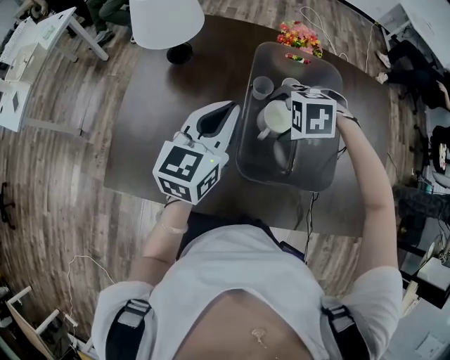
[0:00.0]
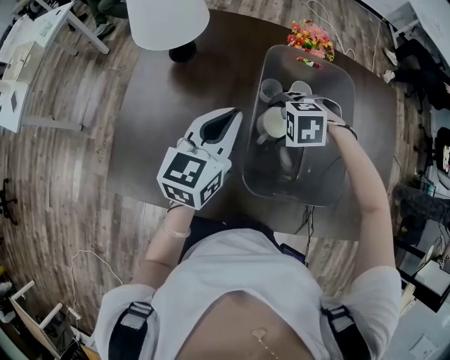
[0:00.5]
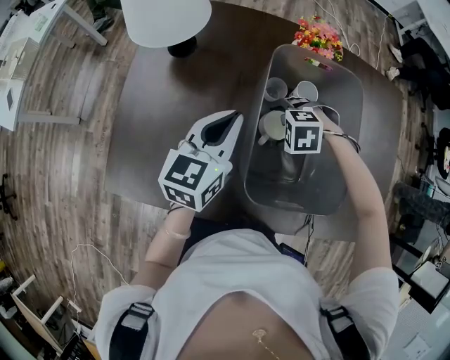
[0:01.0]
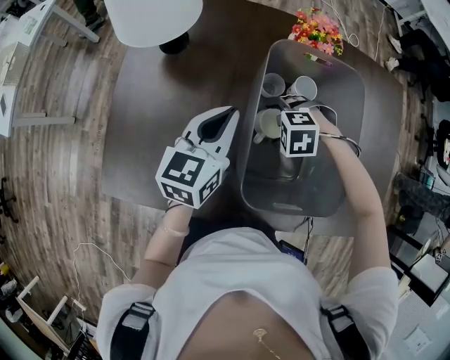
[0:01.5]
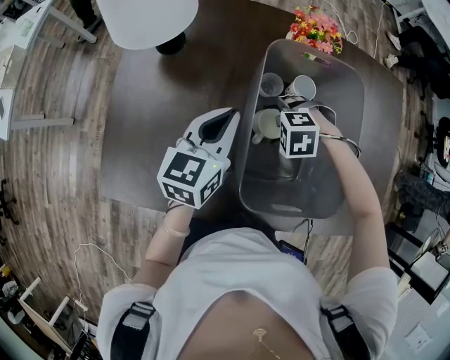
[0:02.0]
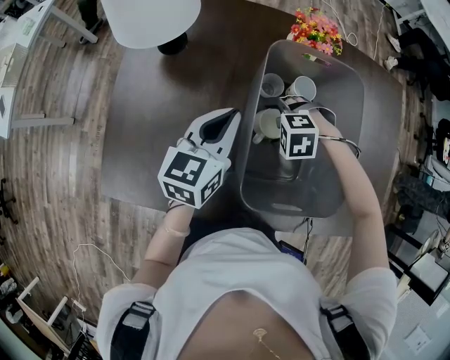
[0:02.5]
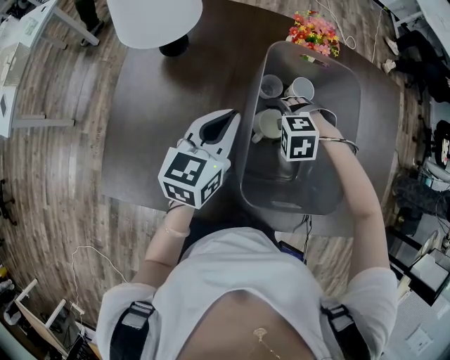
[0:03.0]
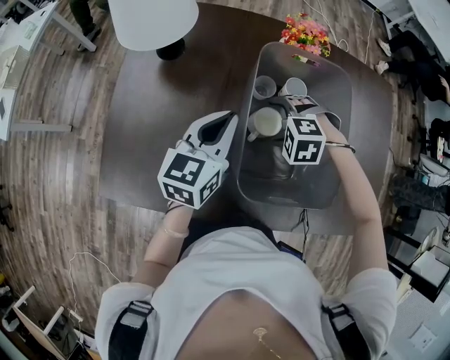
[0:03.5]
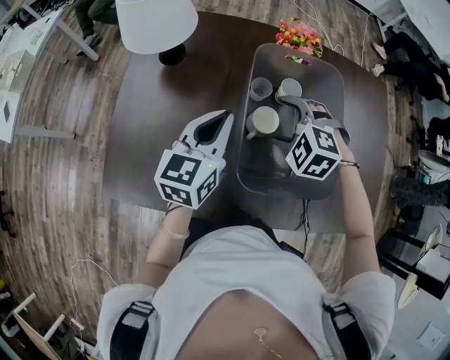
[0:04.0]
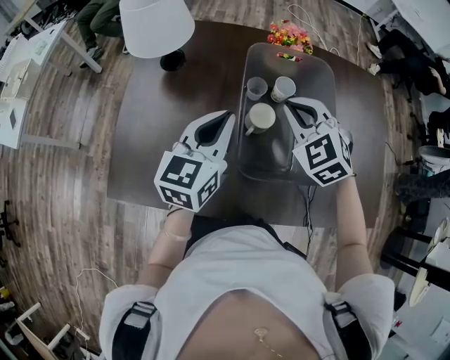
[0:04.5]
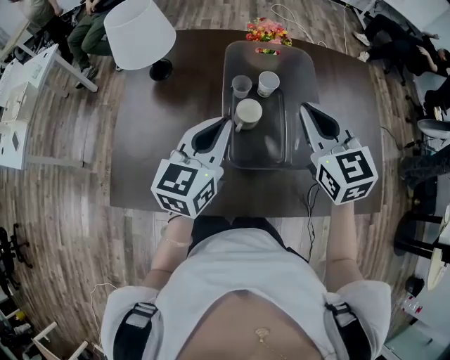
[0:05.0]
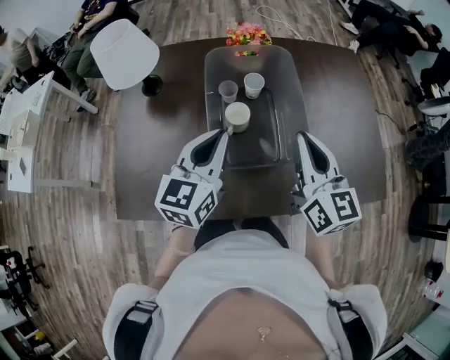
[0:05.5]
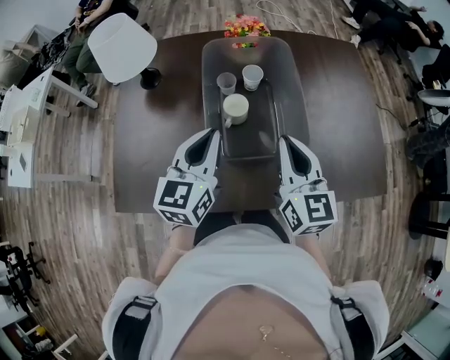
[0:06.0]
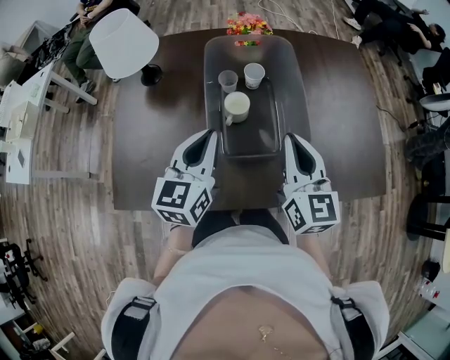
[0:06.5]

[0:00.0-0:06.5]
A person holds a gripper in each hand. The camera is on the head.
0.0 to 2.0 s: Both grippers travel together downward, roughly 10 cm.
2.0 to 4.5 s: The right gripper goes approximately 20 cm upward, tips its fingers upward by about 40 degrees, and closes its fingers. The left gripper moves upward, some 5 cm.
4.5 to 6.5 s: The right gripper is displaced backward and to the right by roughly 15 cm, and rotates around the line of its fingers by some 50 degrees, clockwise from behind, while the left gripper travels backward by some 5 cm.

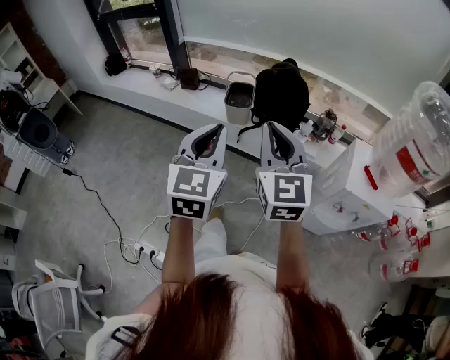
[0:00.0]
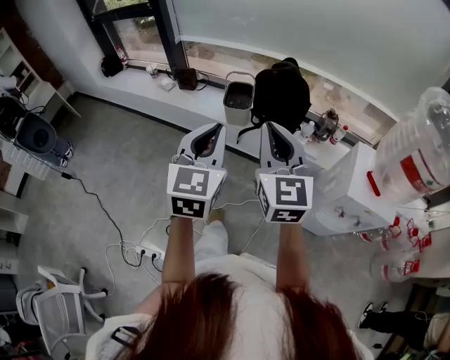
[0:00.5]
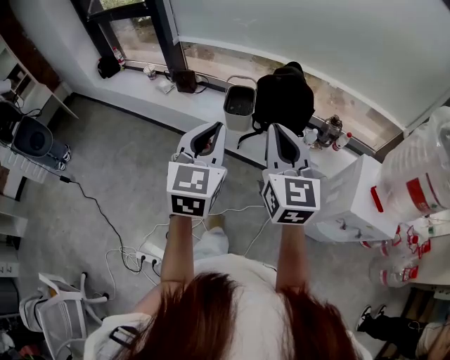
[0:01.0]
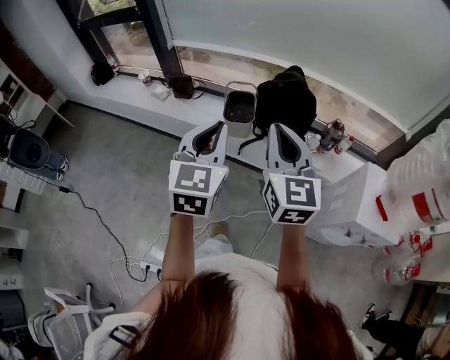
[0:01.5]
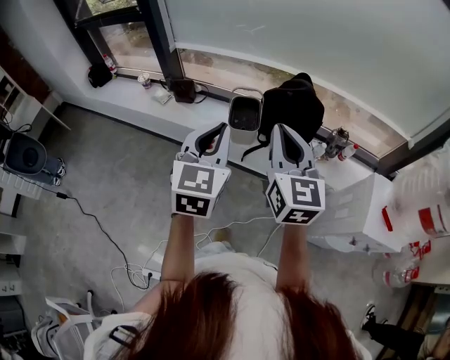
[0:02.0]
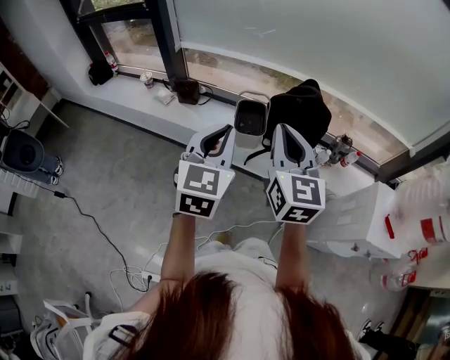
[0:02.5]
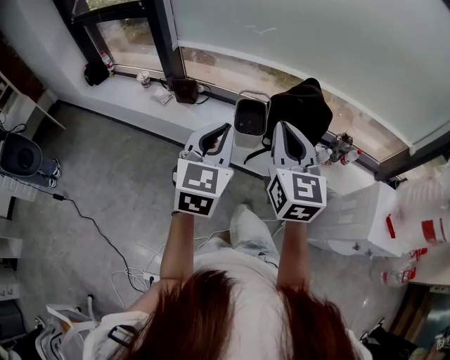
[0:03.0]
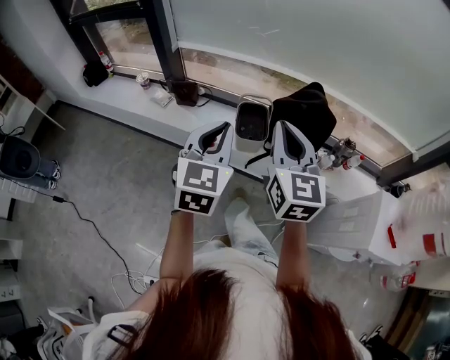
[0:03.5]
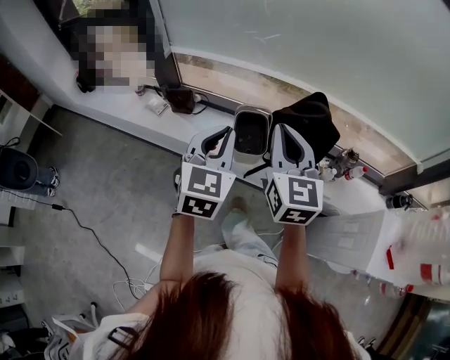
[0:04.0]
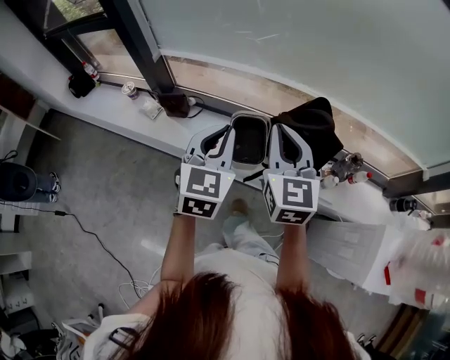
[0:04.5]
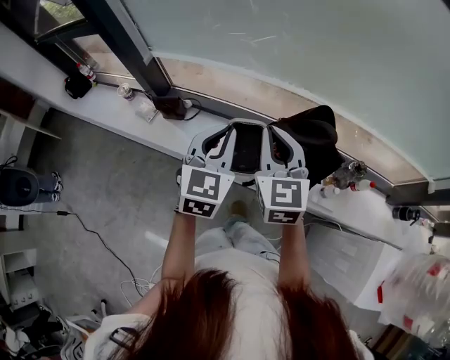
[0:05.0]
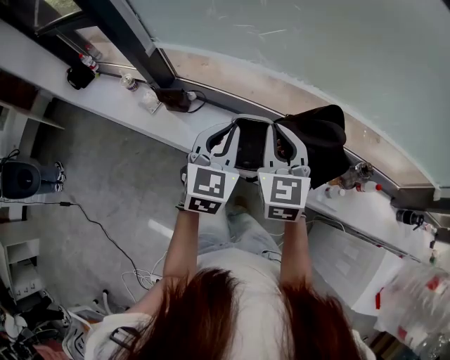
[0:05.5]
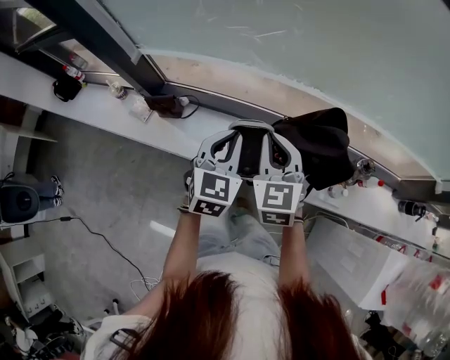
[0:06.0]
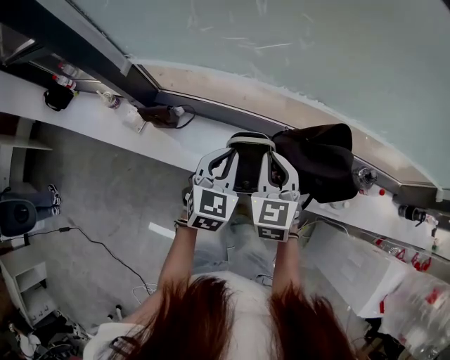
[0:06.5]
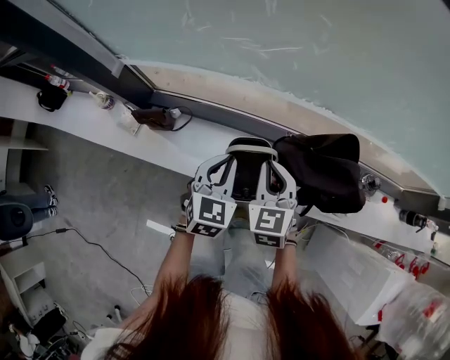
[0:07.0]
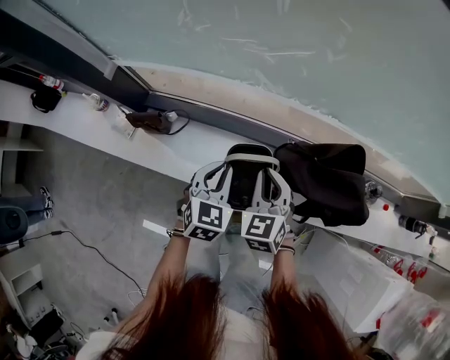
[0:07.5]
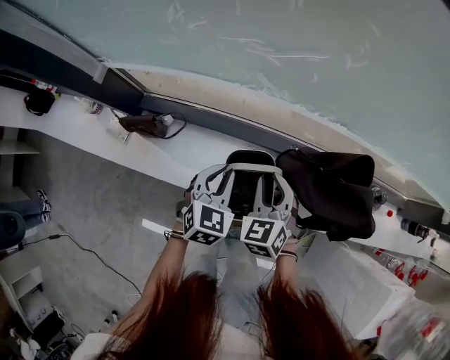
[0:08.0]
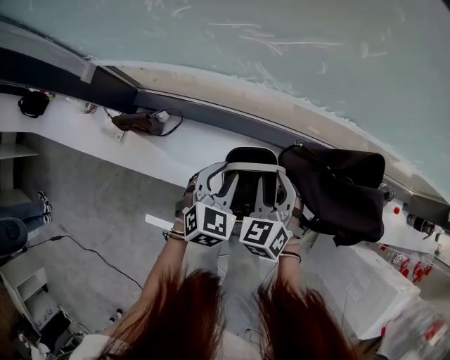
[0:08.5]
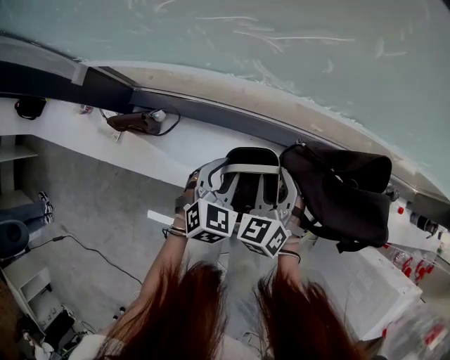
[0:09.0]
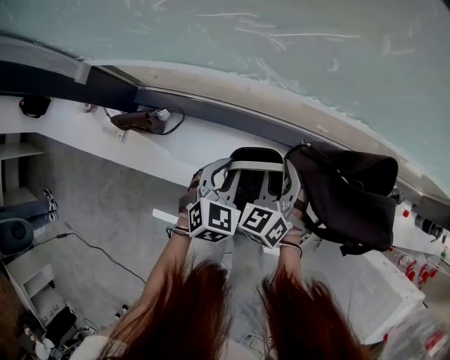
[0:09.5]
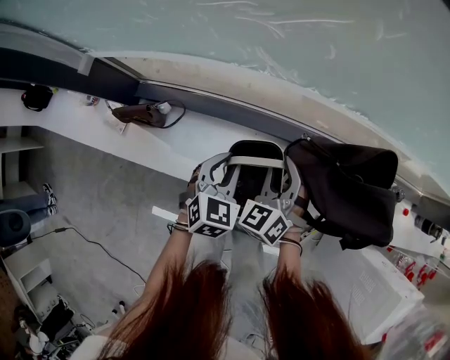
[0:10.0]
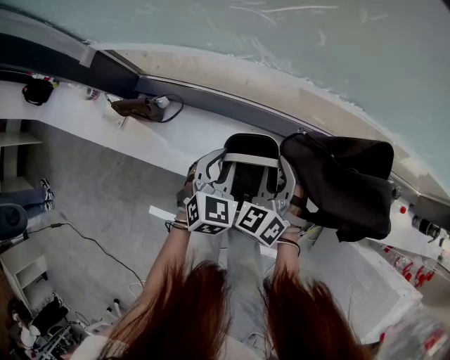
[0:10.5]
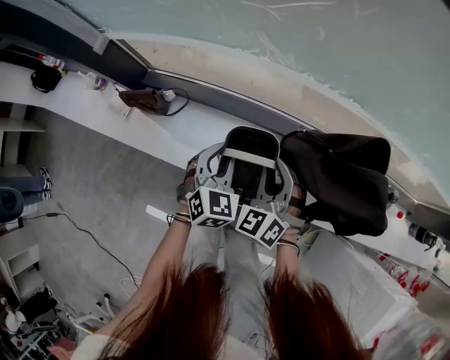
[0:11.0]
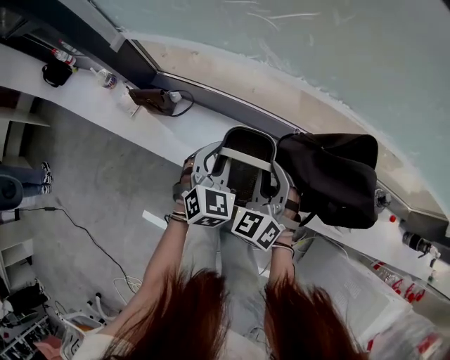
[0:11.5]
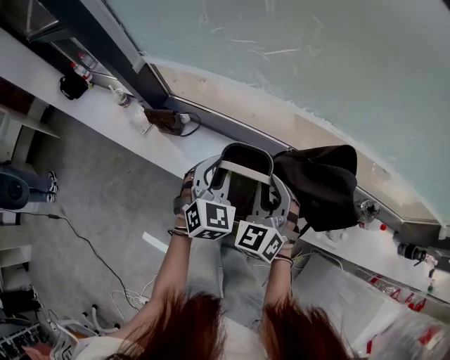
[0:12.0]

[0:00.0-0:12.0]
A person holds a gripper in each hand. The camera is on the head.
0.0 to 2.0 s: The grippers both shift forward by about 20 cm.
2.0 to 4.0 s: Both grippers move forward, approximately 20 cm.
4.0 to 6.0 s: Both grippers travel together forward and downward, roughly 25 cm.
6.0 to 8.0 s: The right gripper travels downward by some 20 cm, and turns by approximately 30 degrees, while the left gripper moves downward and forward, roughly 20 cm.
8.0 to 10.0 s: Both grippers move downward, approximately 5 cm.
10.0 to 12.0 s: The two grippers go roughly 15 cm upward and backward. The left gripper turns by roughly 20 degrees.

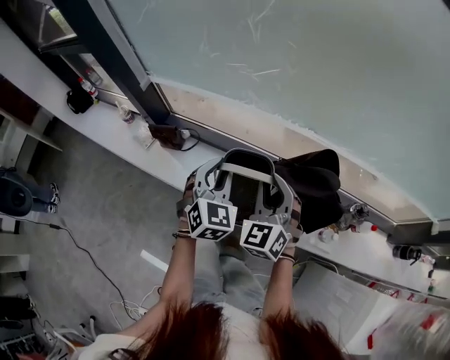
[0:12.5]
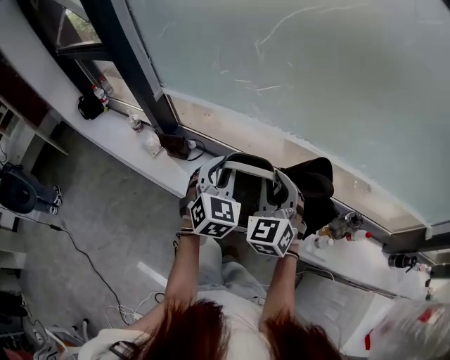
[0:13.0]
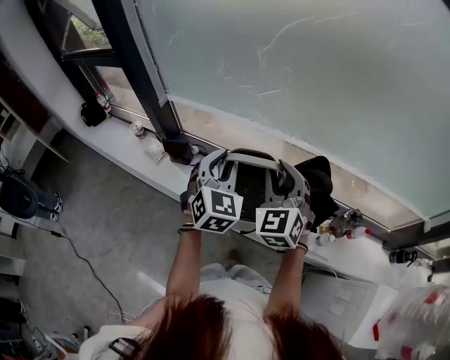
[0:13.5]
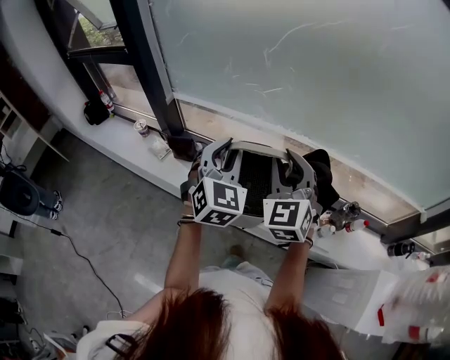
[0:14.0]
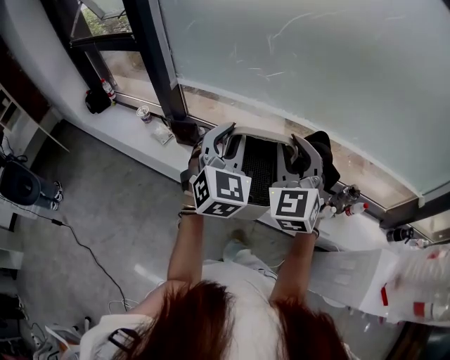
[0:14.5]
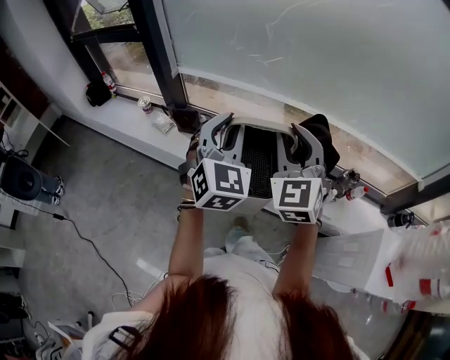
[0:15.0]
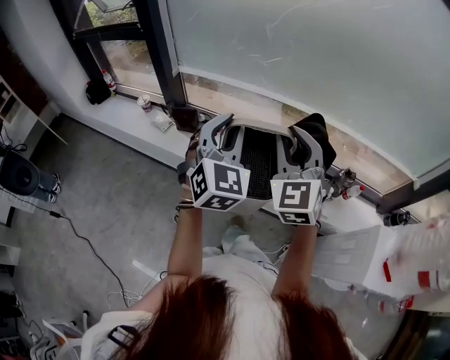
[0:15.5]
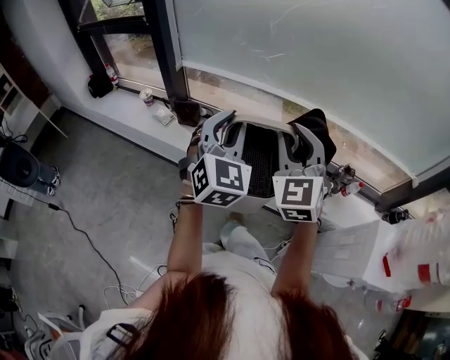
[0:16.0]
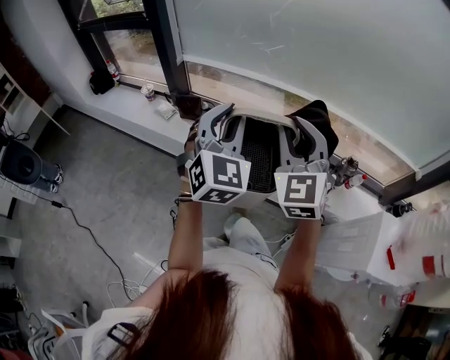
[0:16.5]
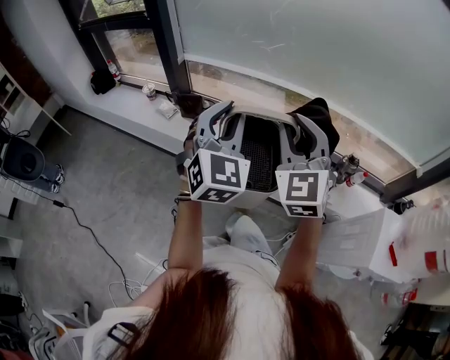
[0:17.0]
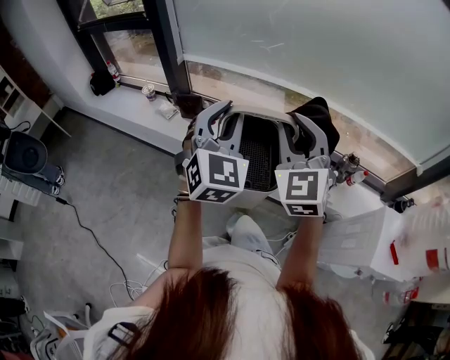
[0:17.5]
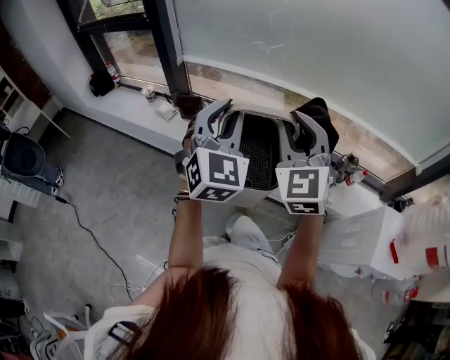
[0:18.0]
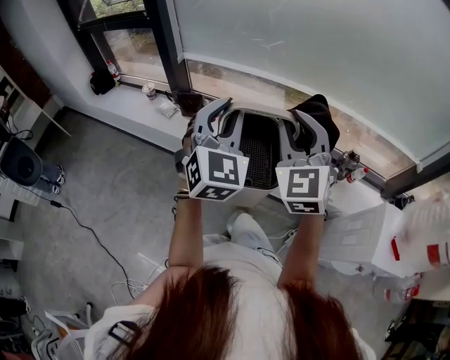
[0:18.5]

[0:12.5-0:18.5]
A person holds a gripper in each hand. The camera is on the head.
12.5 to 14.5 s: Both grippers travel together upward and backward, approximately 25 cm.
14.5 to 16.5 s: Both grippers move backward, about 15 cm.
16.5 to 18.5 s: There are only small adjustments of the grippers.

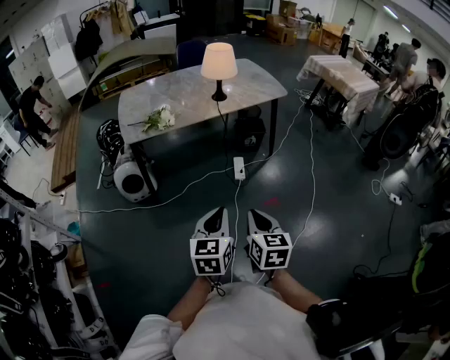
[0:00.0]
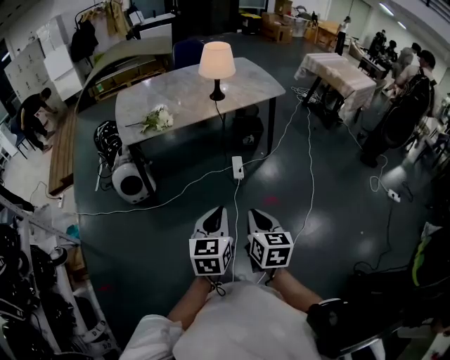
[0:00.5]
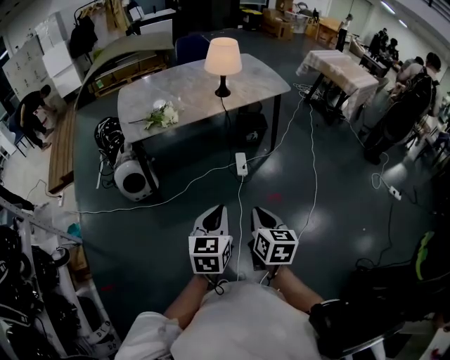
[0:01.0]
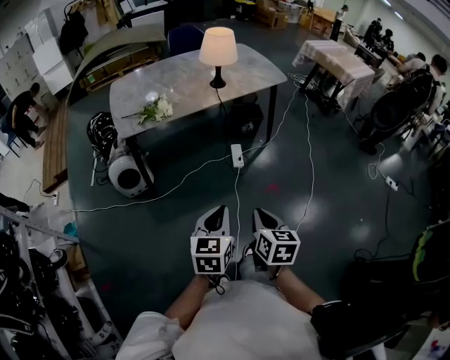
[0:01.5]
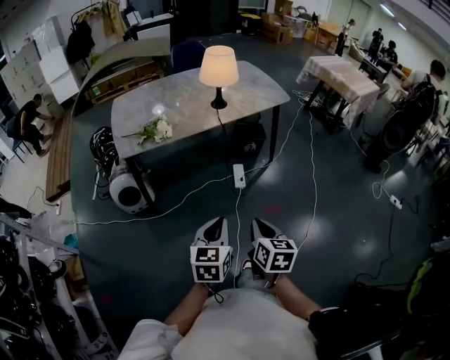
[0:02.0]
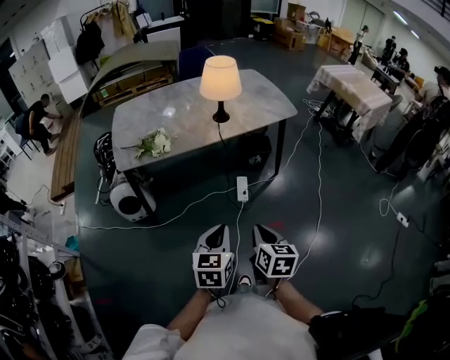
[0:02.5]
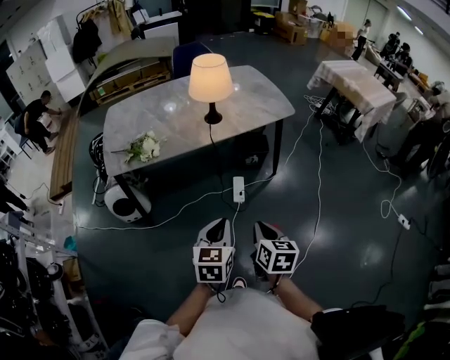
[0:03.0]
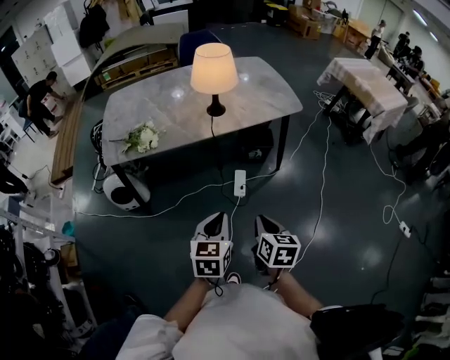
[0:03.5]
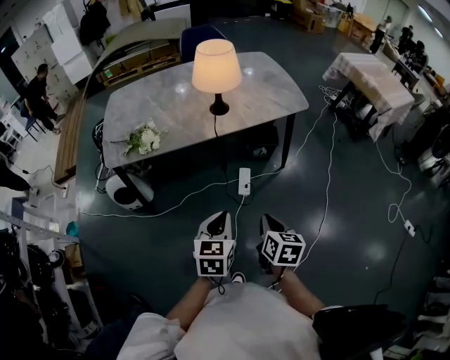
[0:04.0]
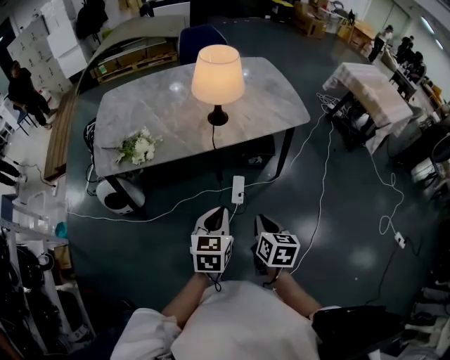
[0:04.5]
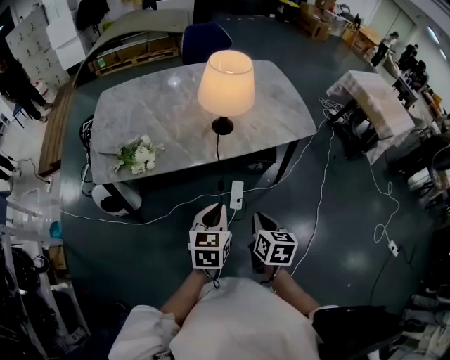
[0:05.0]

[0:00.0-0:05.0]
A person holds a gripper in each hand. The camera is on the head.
0.0 to 2.5 s: The two grippers go roughly 15 cm forward.
2.5 to 5.0 s: The two grippers go about 30 cm forward.
